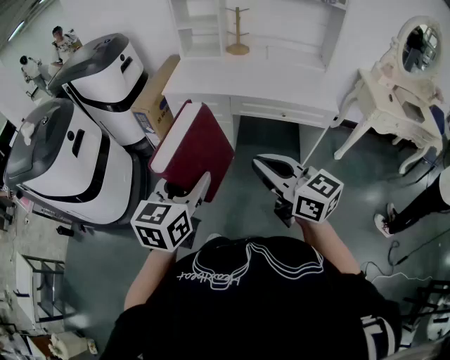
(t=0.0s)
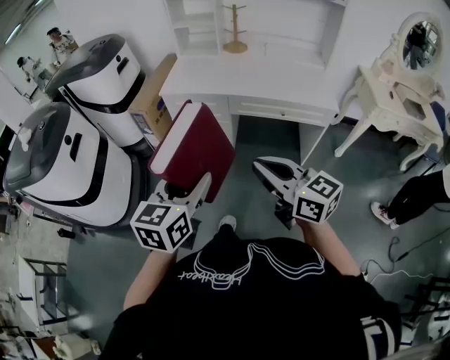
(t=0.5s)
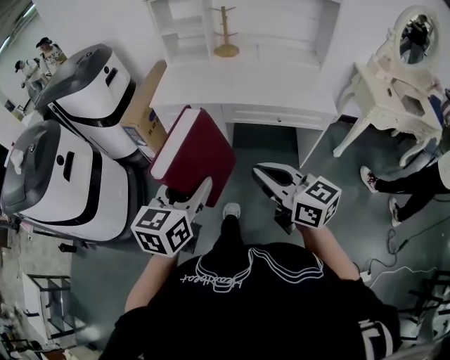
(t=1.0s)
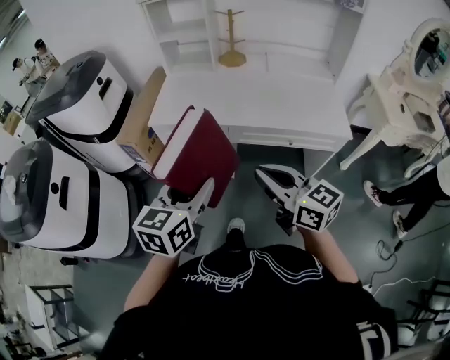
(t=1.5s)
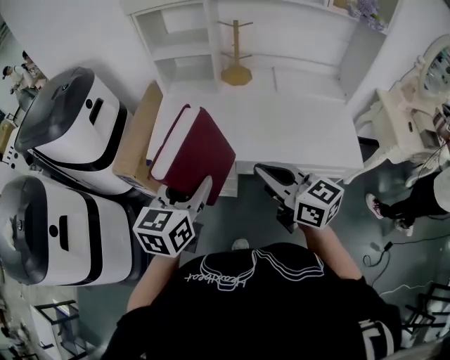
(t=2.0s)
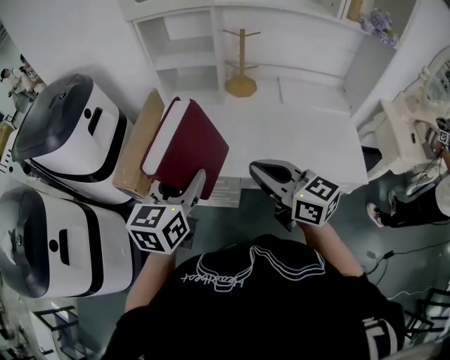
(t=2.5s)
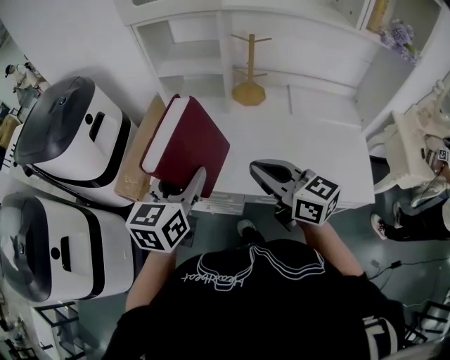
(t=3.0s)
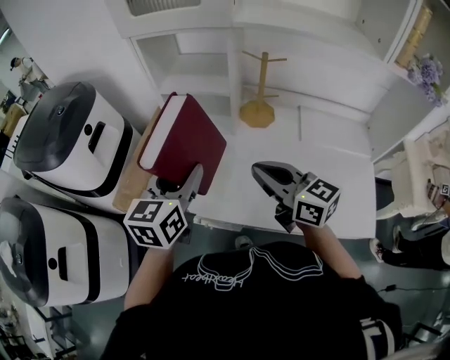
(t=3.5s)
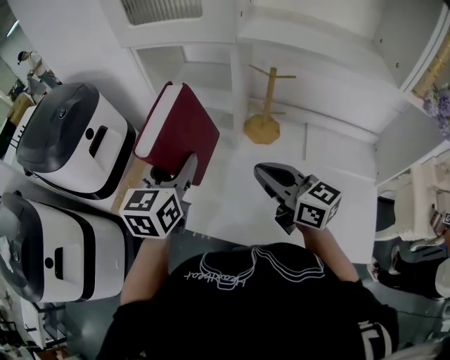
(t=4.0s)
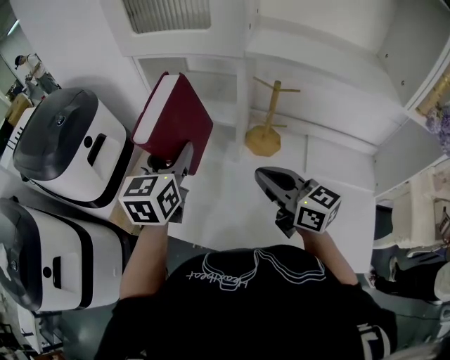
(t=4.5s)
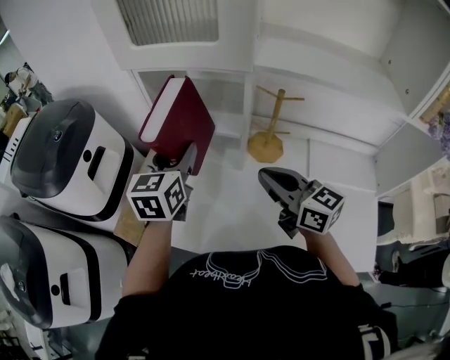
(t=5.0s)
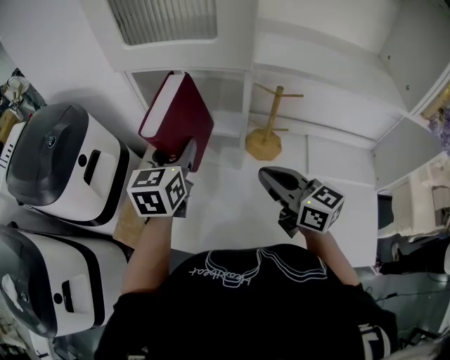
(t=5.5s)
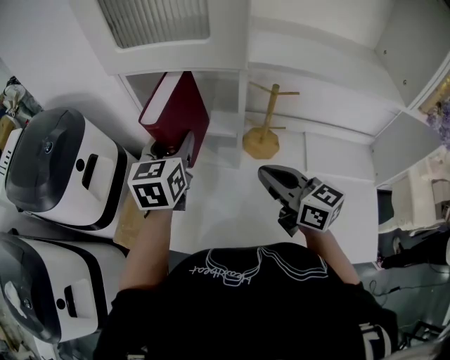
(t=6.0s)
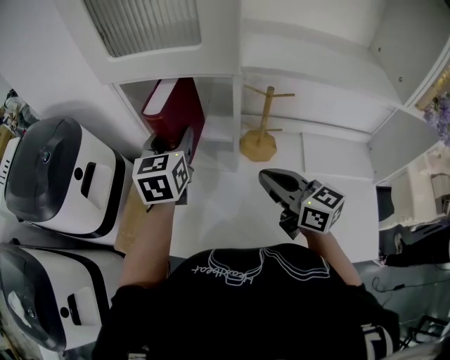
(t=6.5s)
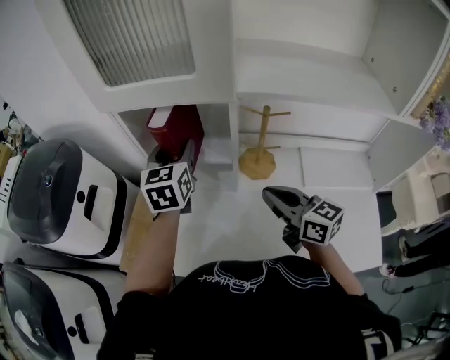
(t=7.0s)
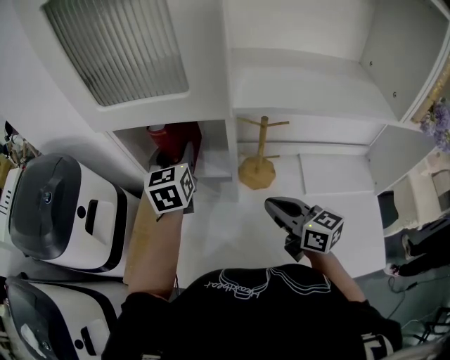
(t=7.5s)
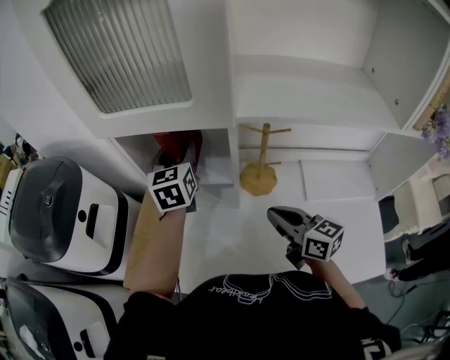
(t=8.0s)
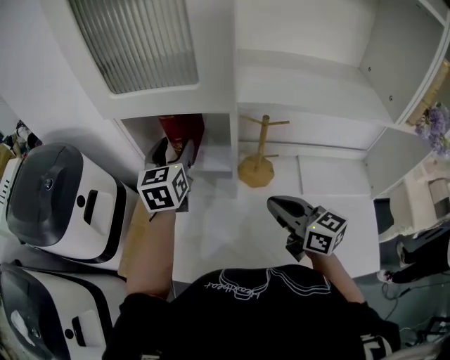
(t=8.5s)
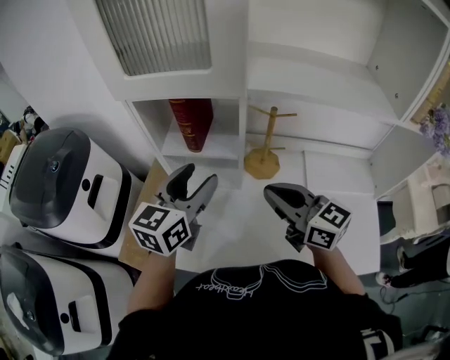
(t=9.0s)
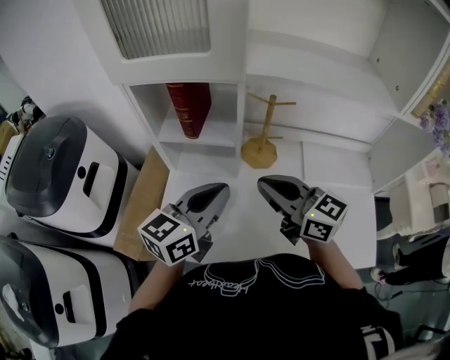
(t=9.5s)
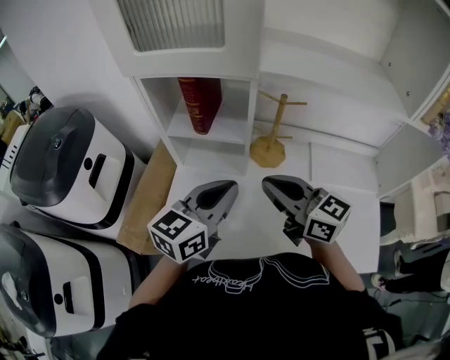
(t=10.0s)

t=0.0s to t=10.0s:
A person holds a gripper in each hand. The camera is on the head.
t=0.0s to t=2.0s: The pair of grippers is taken forward, approximately 40 cm.
t=2.0s to t=4.0s: Both grippers move forward, some 30 cm.
t=4.0s to t=6.0s: The right gripper heads forward, covering approximately 10 cm; the left gripper travels forward by about 15 cm.
t=6.0s to t=8.0s: The right gripper shifts by roughly 5 cm. The left gripper moves forward and to the right, some 15 cm.
t=8.0s to t=10.0s: The right gripper heads upward and to the left, covering about 10 cm, while the left gripper moves backward, about 25 cm, rotates roughly 40 degrees, and closes.

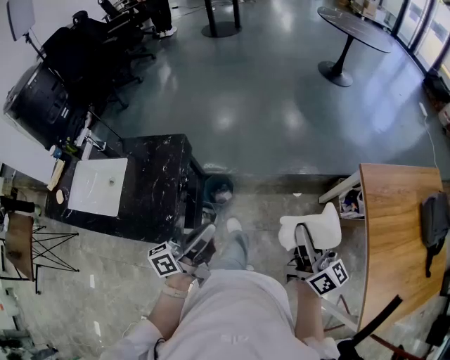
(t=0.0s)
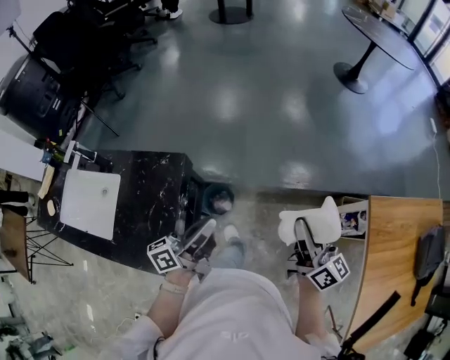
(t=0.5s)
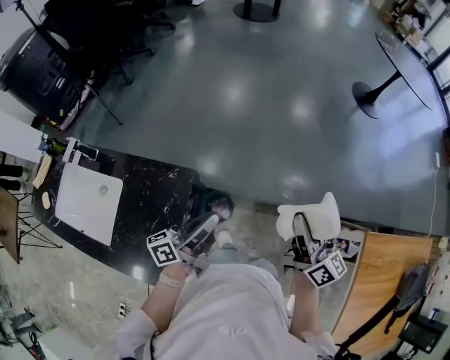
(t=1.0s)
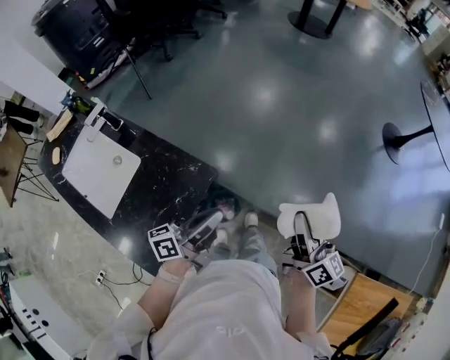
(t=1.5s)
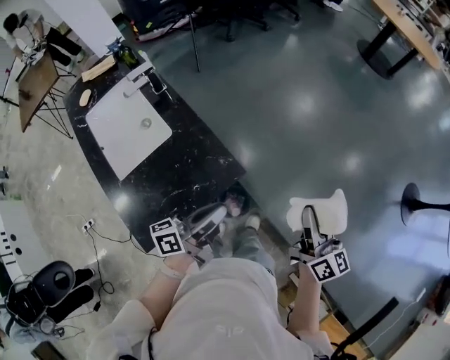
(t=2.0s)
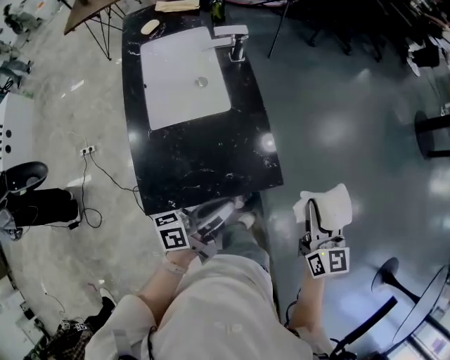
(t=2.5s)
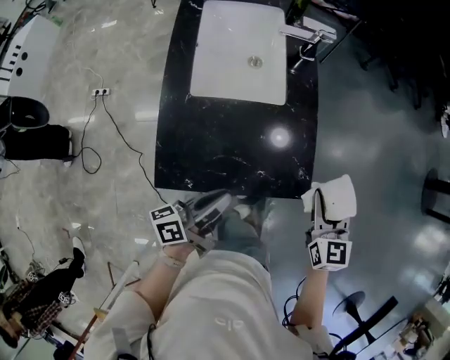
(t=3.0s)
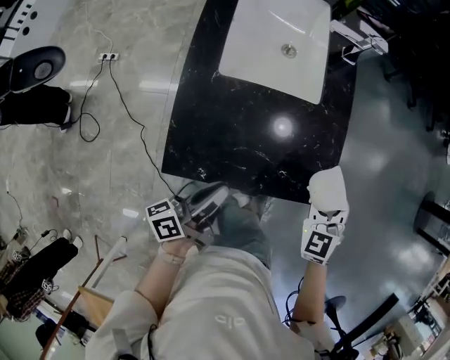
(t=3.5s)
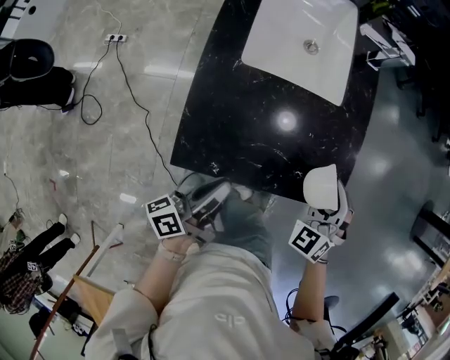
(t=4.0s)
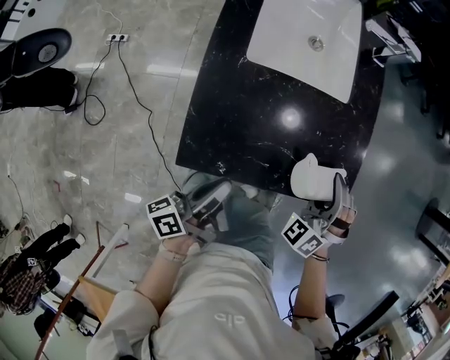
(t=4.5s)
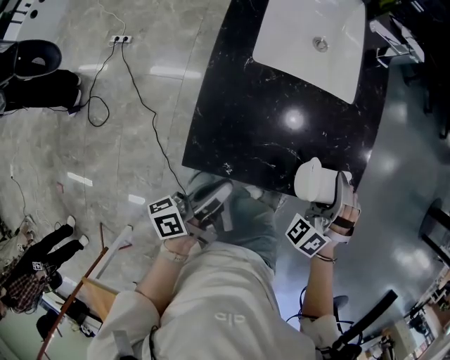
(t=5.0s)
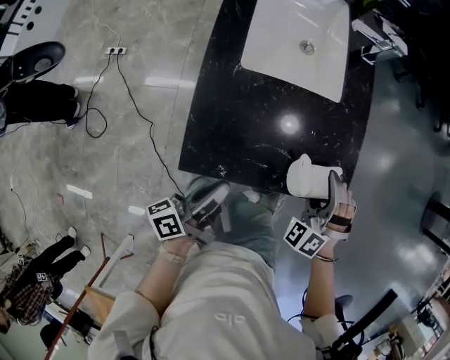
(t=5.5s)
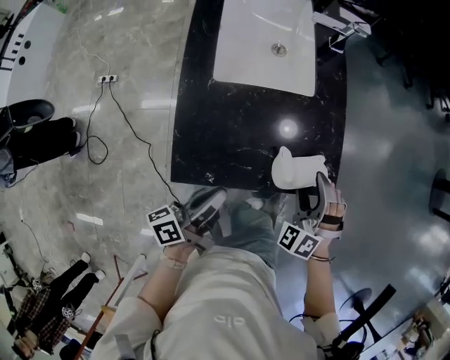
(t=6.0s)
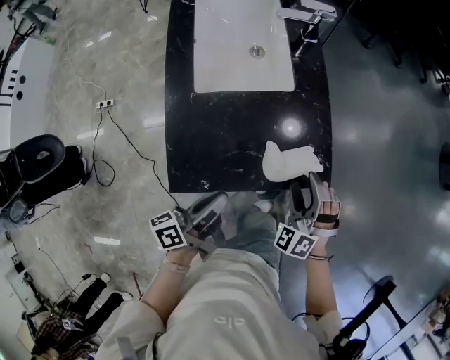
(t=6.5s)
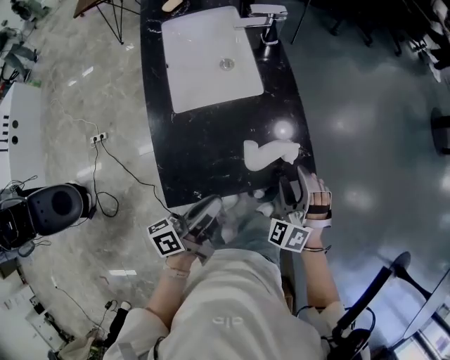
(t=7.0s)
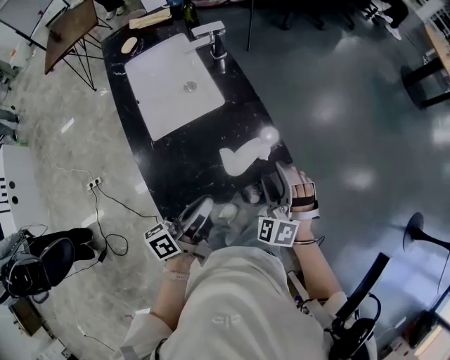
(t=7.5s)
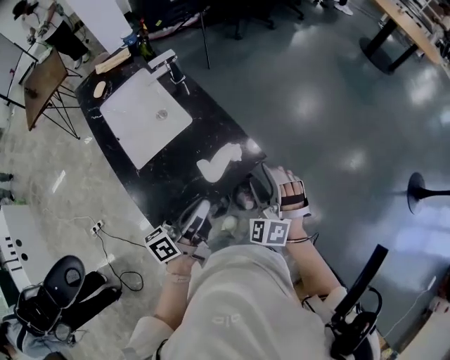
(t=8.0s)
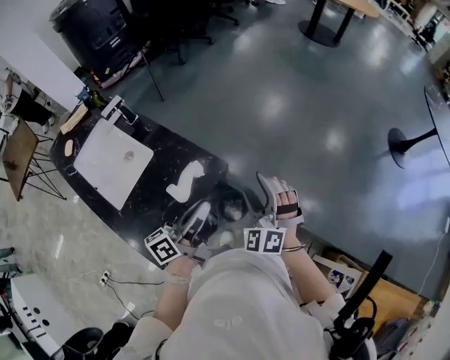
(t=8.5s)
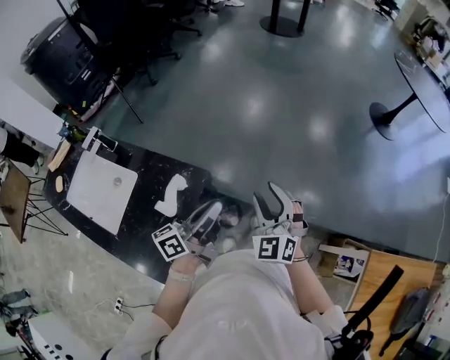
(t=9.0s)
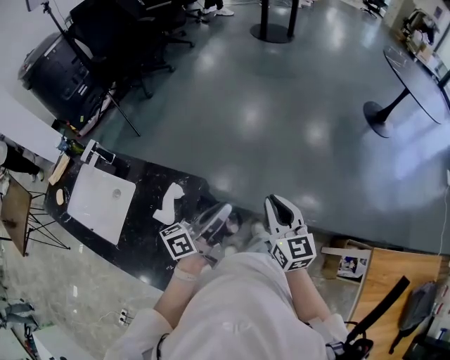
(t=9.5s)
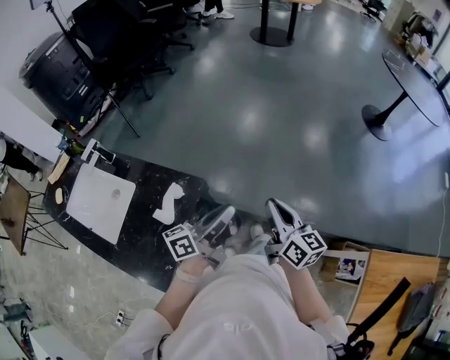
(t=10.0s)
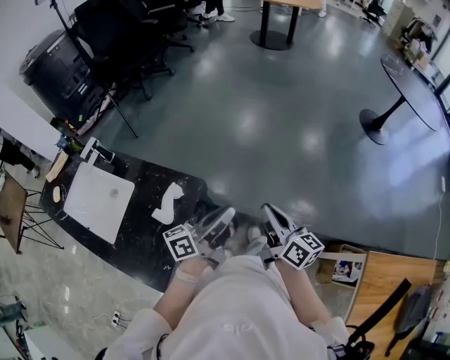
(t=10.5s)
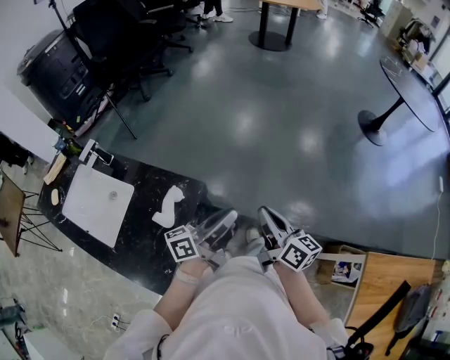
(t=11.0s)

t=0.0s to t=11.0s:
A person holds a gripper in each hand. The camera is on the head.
t=0.0s to t=2.0s: The left gripper moves approximately 35 cm, and turns by approximately 40 degrees. The right gripper shifts by about 50 cm, and changes its angle by about 40 degrees.
t=2.0s to t=3.5s: The left gripper shifts by about 25 cm, and turns by approximately 50 degrees. Meanwhile the right gripper shifts by approximately 35 cm, and rolls counterclockwise, seen from behind, by roughly 70 degrees.
t=3.5s to t=5.5s: The right gripper goes roughly 5 cm to the left and downward, changes its angle by about 40 degrees, and opens; the left gripper changes place by some 5 cm.
t=5.5s to t=7.5s: The right gripper goes some 10 cm upward and to the right, and turns by roughly 30 degrees, while the left gripper travels upward, to the right and forward by some 15 cm, and swivels about 30 degrees.
t=7.5s to t=9.0s: The right gripper changes place by approximately 25 cm, and swivels some 50 degrees. The left gripper ends up roughly 25 cm from where it was, and changes its angle by about 50 degrees.
t=9.0s to t=11.0s: The right gripper twists some 80 degrees clockwise, seen from behind, and closes its fingers.

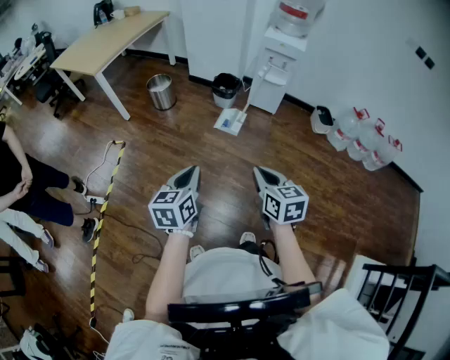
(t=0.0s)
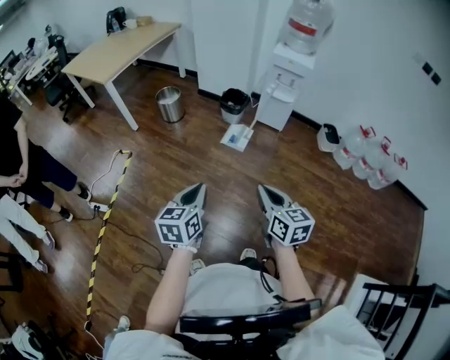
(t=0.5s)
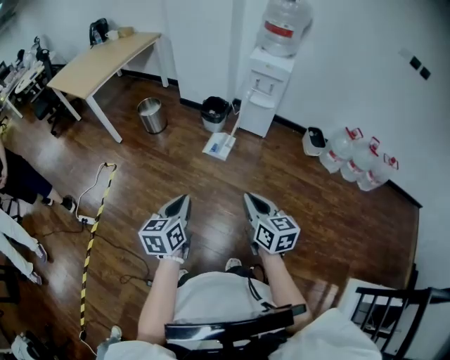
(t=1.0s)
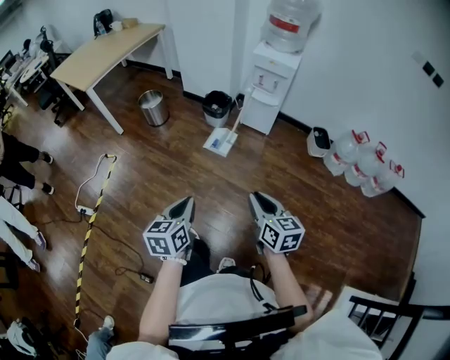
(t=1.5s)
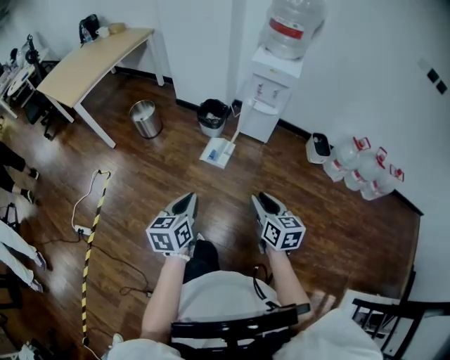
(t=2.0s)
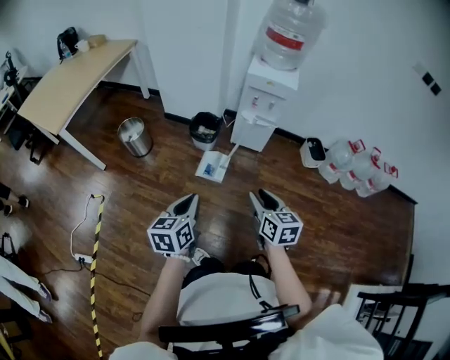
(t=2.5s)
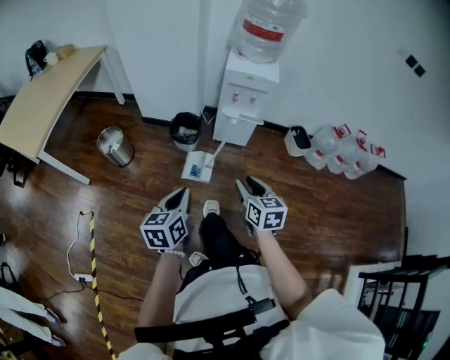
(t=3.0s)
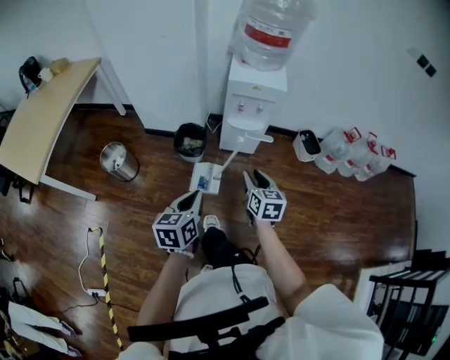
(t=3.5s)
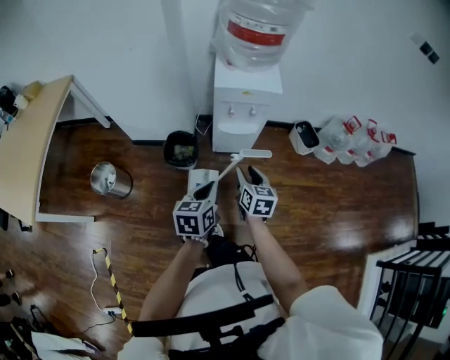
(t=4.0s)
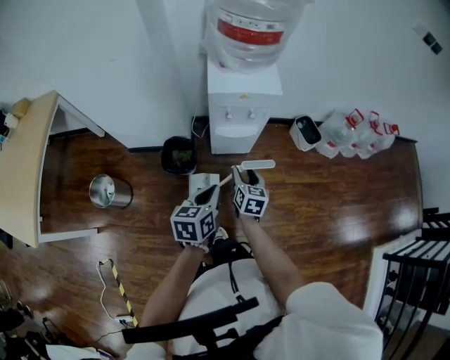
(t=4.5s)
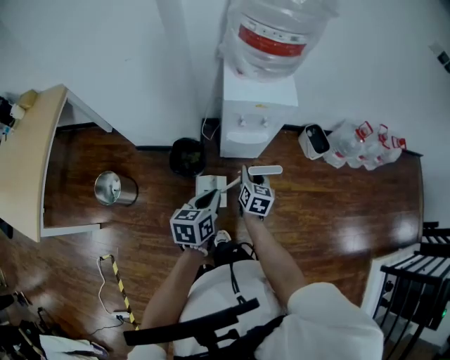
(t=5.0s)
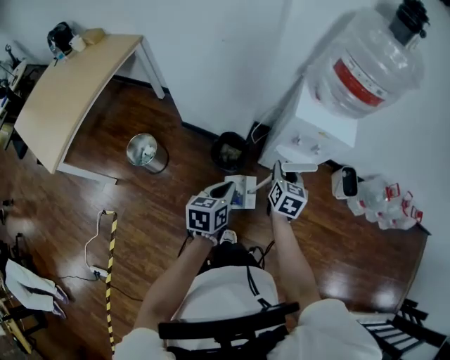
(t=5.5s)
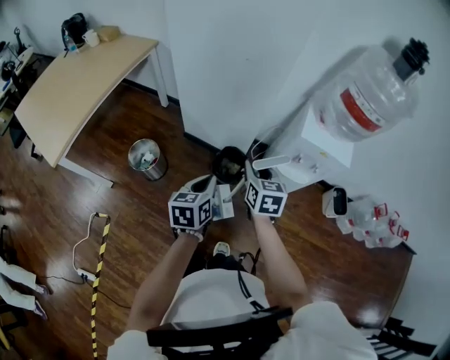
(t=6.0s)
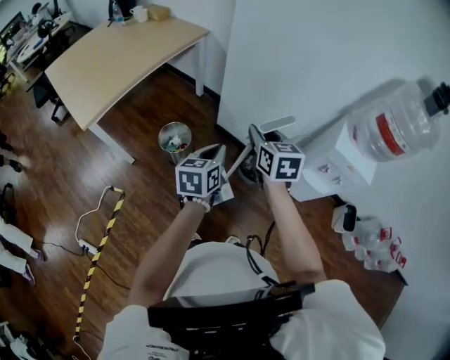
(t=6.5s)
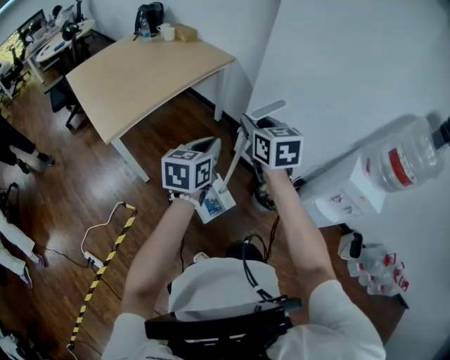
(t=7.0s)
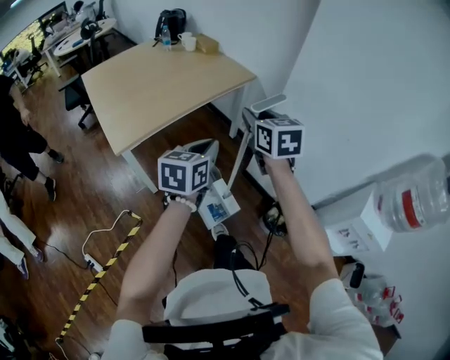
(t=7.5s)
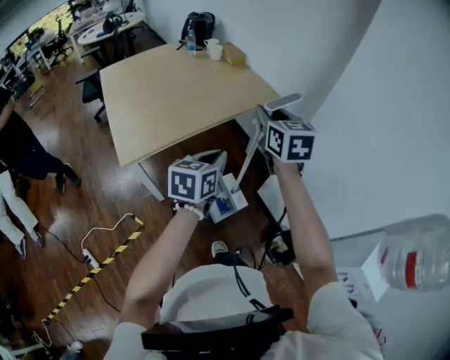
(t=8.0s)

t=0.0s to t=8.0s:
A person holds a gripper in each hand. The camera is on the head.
t=0.0s to t=2.0s: The grippers both shift forward and to the right by about 25 cm. The right gripper opens up.
t=2.0s to t=4.0s: The two grippers travel together, roughly 50 cm. The right gripper turns by roughly 30 degrees. The left gripper changes its angle by approximately 30 degrees.
t=4.0s to t=6.0s: The left gripper shifts by about 25 cm, and turns by roughly 20 degrees. The right gripper changes place by some 30 cm, and turns by some 30 degrees.
t=6.0s to t=8.0s: Both grippers are carried about 50 cm. The left gripper changes its angle by some 30 degrees; the right gripper turns by about 40 degrees.
